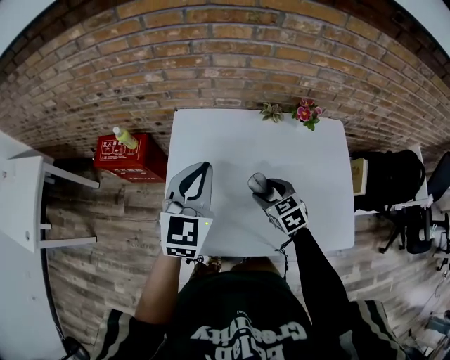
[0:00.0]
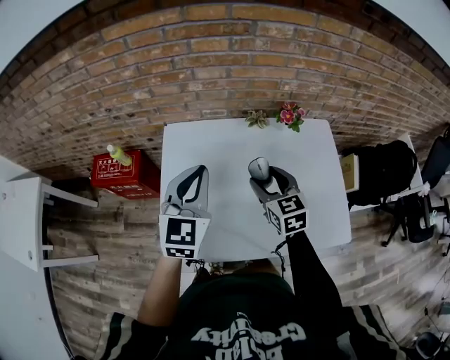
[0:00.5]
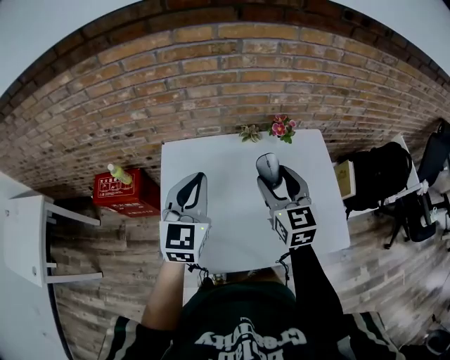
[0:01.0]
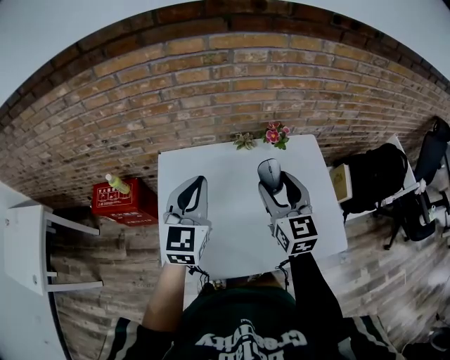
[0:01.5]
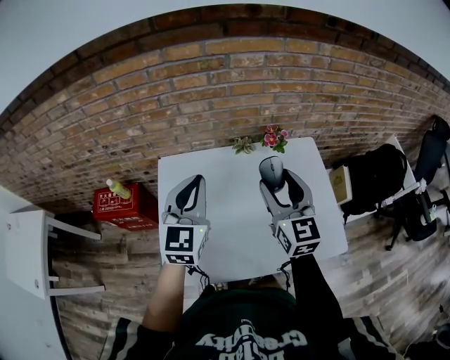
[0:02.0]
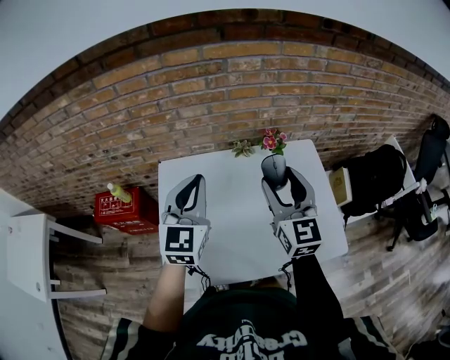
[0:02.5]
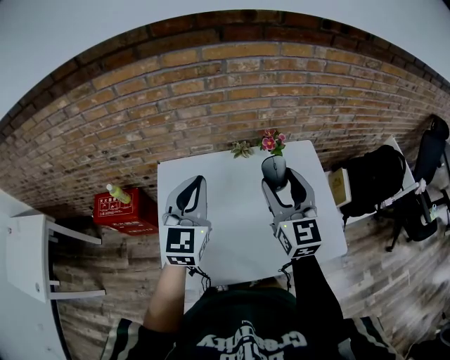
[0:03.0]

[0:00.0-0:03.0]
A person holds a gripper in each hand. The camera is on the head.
0:00.0 to 0:01.5: The right gripper moves upward, roughly 20 cm, and tips its fingers upward by about 40 degrees; the left gripper heads to the right, covering about 5 cm.
0:01.5 to 0:03.0: The right gripper ends up some 5 cm from where it was.

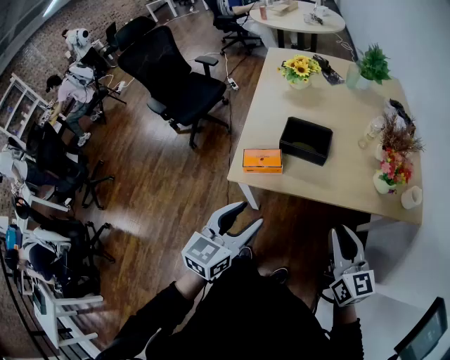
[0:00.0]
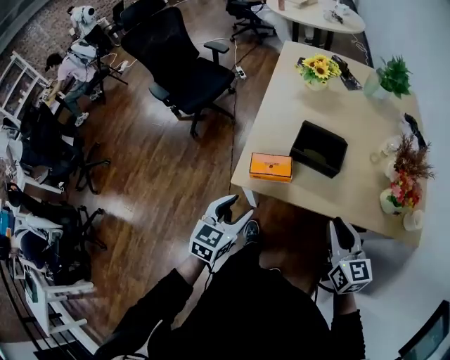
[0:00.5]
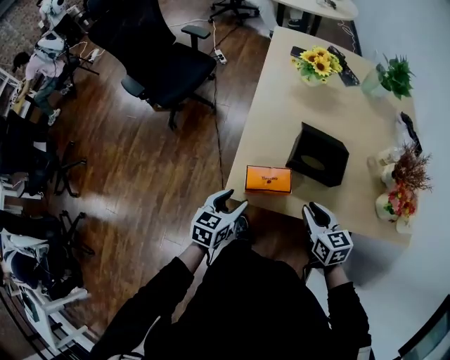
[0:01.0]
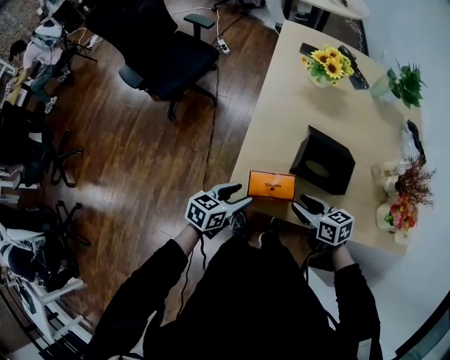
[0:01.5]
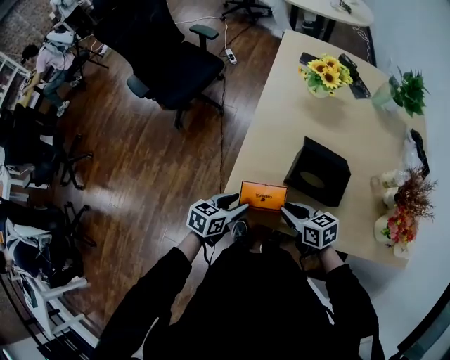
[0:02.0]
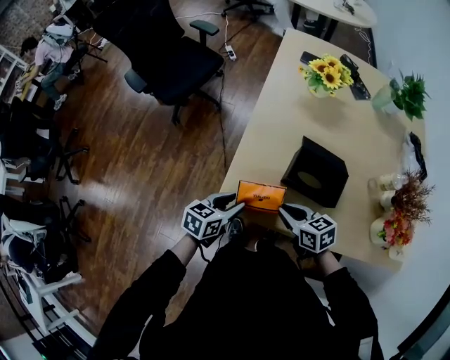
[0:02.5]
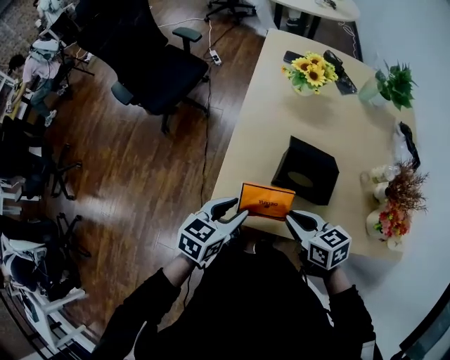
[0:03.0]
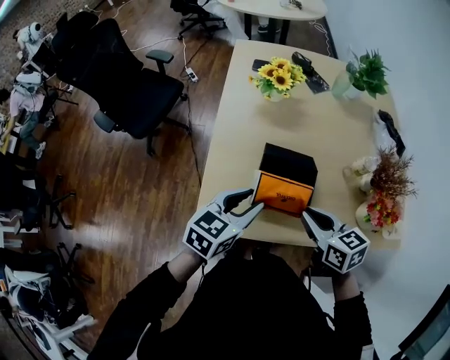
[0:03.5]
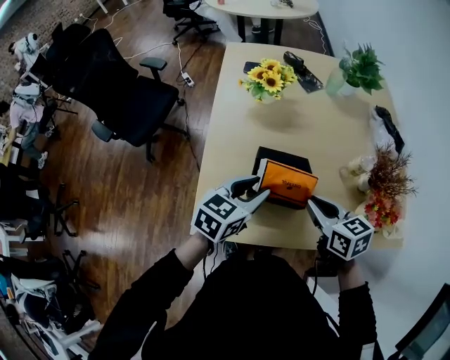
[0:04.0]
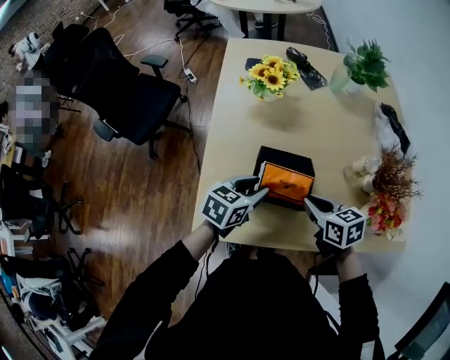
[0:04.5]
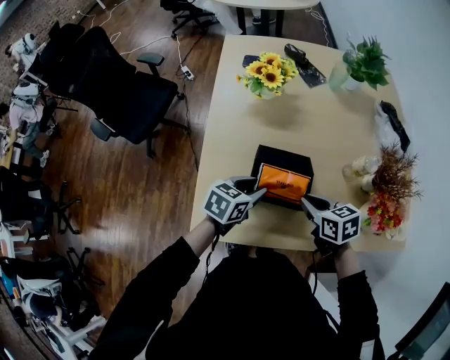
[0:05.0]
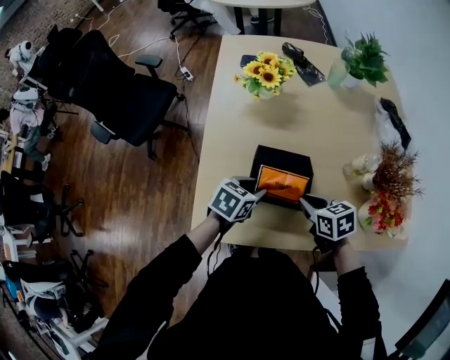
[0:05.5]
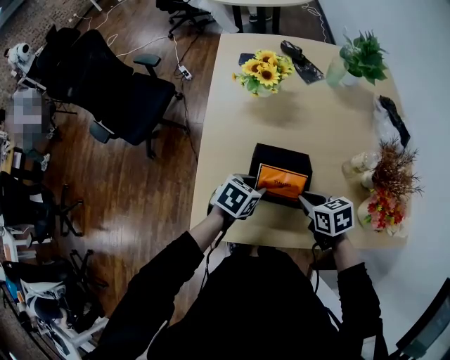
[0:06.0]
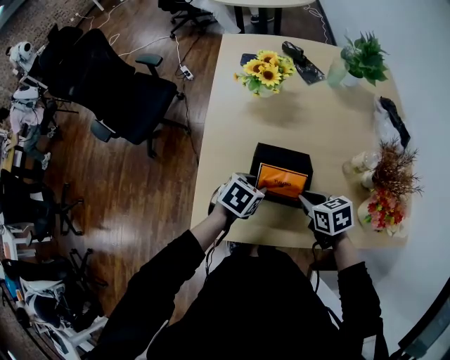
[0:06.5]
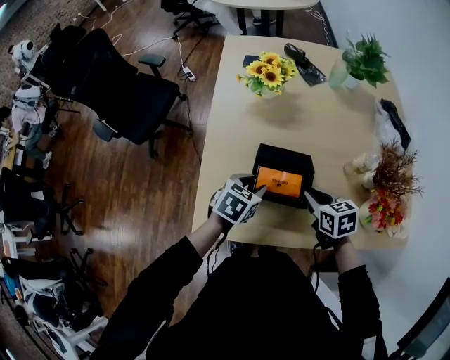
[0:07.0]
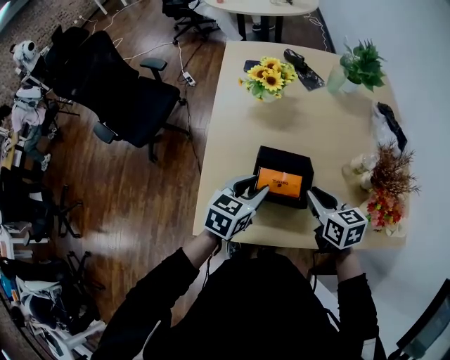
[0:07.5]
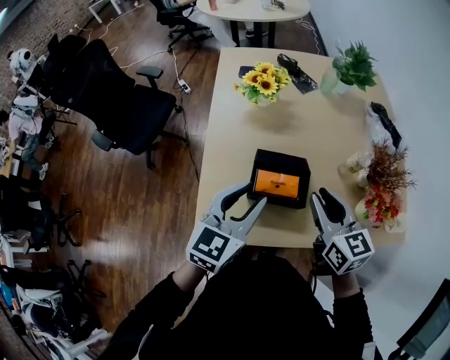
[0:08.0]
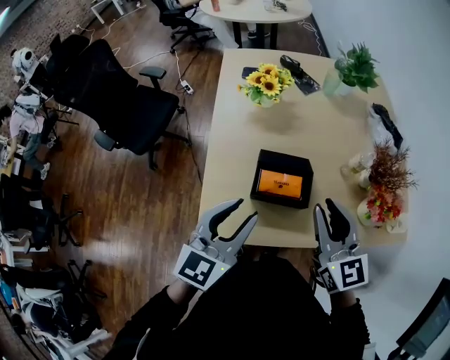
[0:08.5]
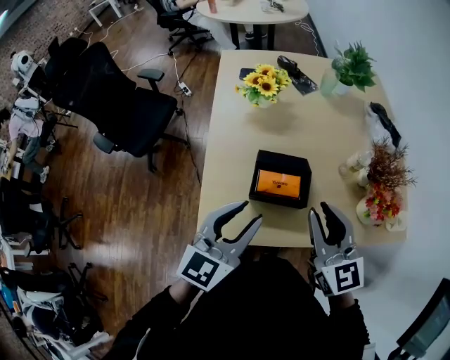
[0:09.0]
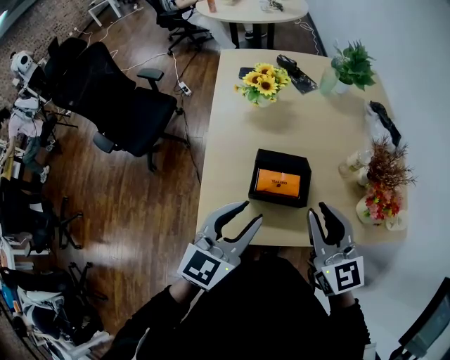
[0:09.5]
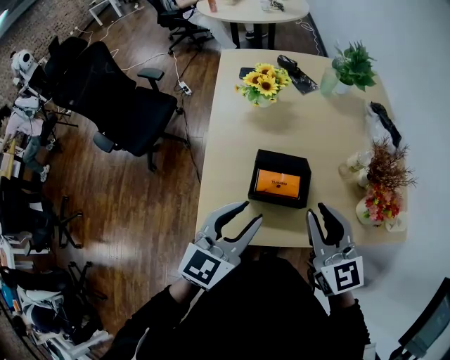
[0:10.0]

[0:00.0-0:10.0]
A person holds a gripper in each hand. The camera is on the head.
0:00.0 to 0:02.0: The right gripper goes roughly 35 cm forward, downward and to the left, changes its angle by some 50 degrees, and opens, then closes once more. Meanwhile the left gripper moves downward and forward, about 30 cm, and swivels some 30 degrees.
0:02.0 to 0:04.0: The left gripper goes about 25 cm to the right, upward and forward, and rotates some 20 degrees; the right gripper is displaced to the right and upward by some 20 cm, and turns by some 20 degrees.
0:04.0 to 0:06.0: Both grippers move downward, about 10 cm. The left gripper turns by roughly 30 degrees.
0:06.0 to 0:08.0: Both grippers travel together upward, some 20 cm. The left gripper tips its fingers upward by about 40 degrees. Meanwhile the right gripper tips its fingers upward by about 30 degrees.
0:08.0 to 0:10.0: The right gripper travels backward by approximately 5 cm.

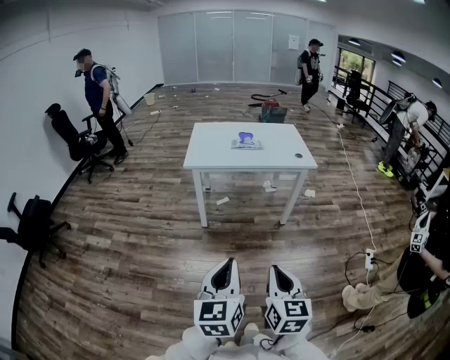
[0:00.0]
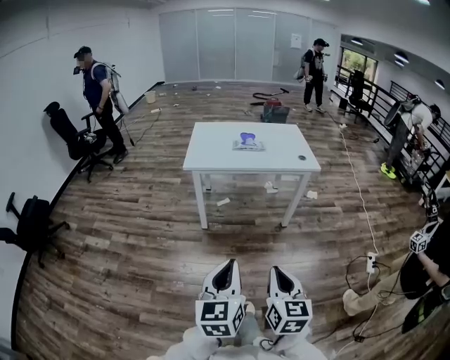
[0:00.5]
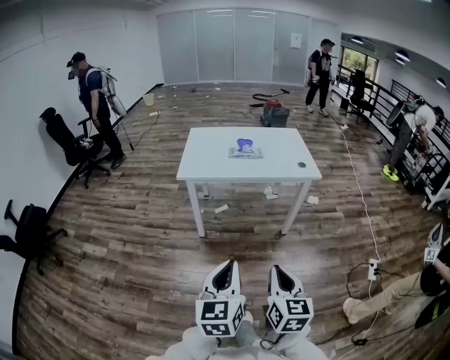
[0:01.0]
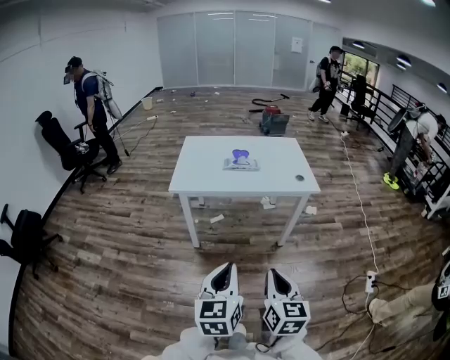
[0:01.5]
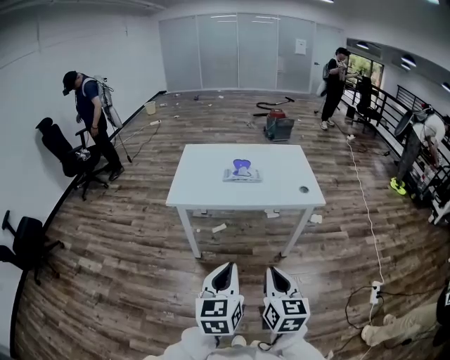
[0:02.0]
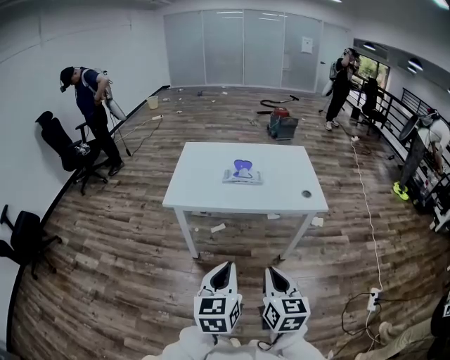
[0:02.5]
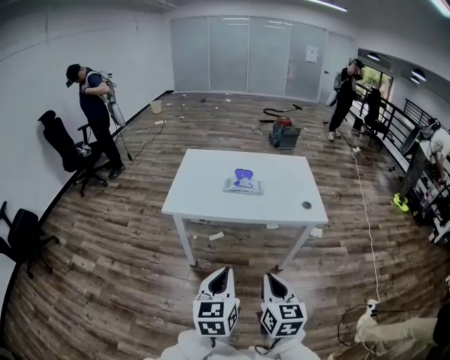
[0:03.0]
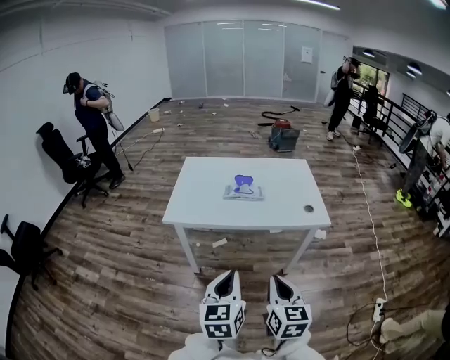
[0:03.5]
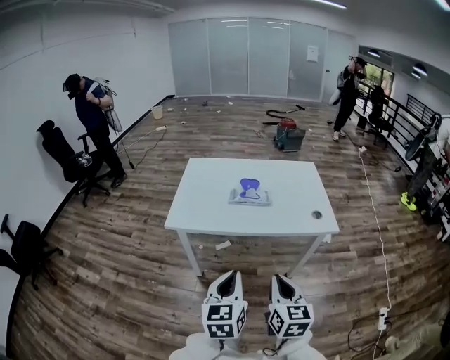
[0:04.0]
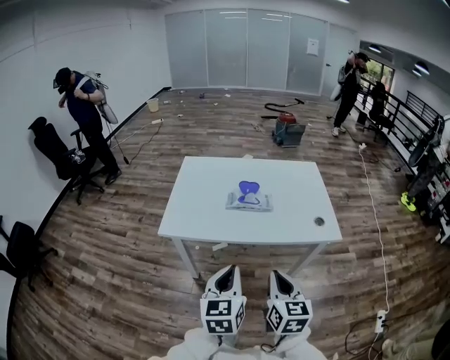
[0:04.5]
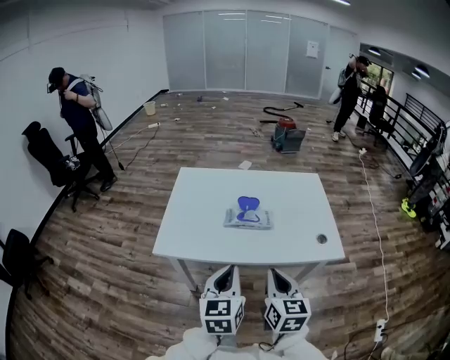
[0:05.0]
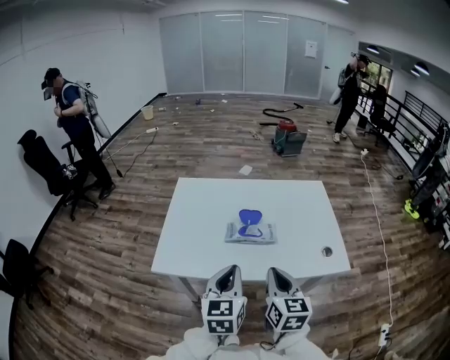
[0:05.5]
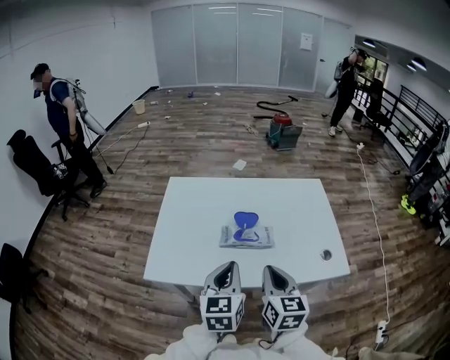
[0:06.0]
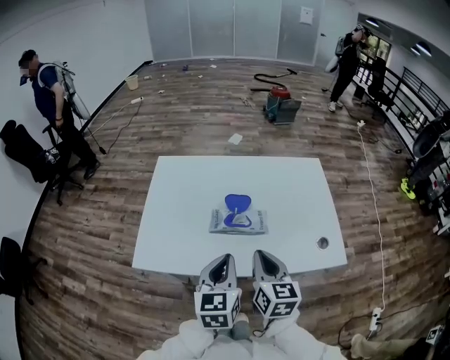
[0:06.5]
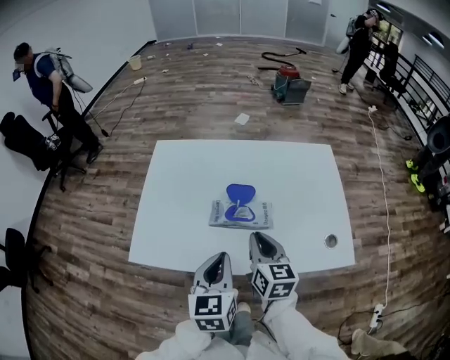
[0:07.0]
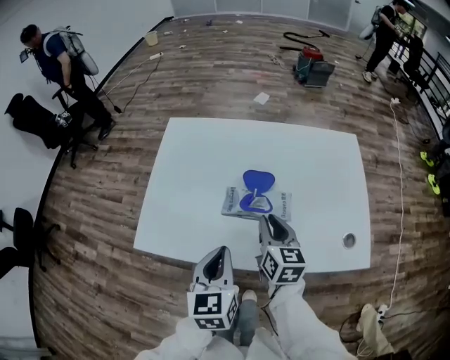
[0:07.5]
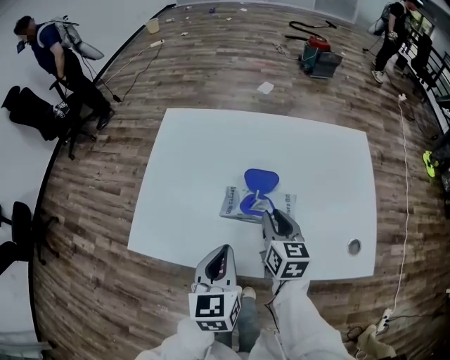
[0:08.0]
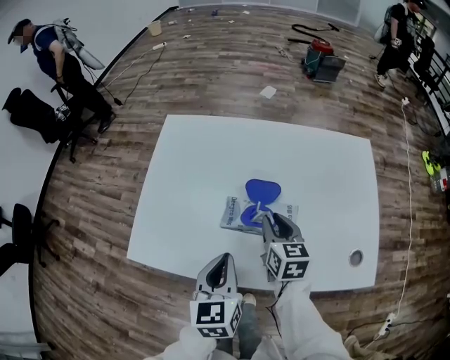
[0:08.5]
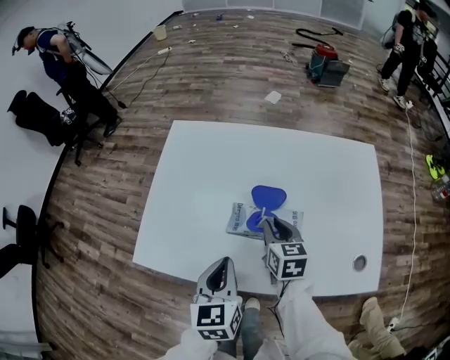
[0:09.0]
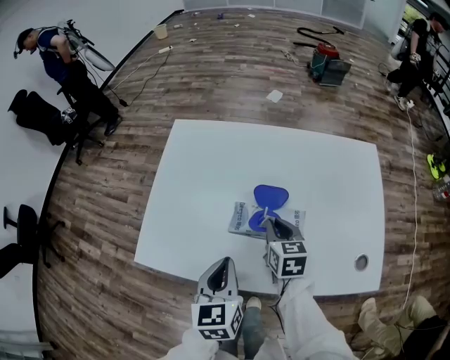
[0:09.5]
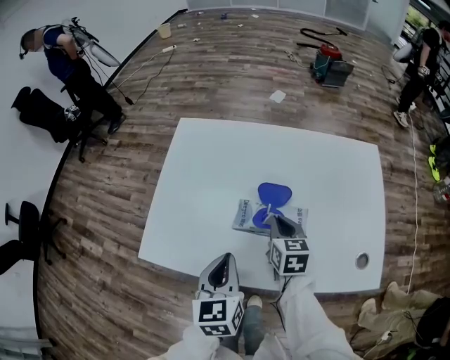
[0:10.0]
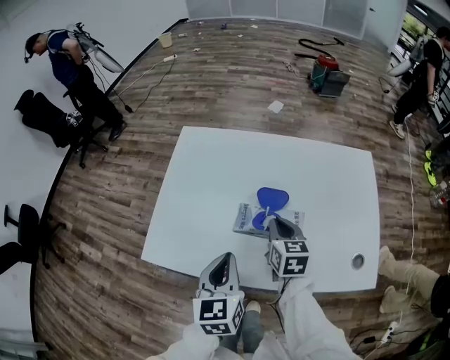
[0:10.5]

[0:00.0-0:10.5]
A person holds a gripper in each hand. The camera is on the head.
0:00.0 to 0:02.0: The two grippers go roughly 30 cm forward.
0:02.0 to 0:04.0: Both grippers travel together forward, about 15 cm.
0:04.0 to 0:06.5: Both grippers move forward, approximately 30 cm.
0:06.5 to 0:08.5: The right gripper shifts approximately 20 cm forward and downward, while the left gripper is displaced downward and forward by approximately 10 cm.
0:08.5 to 0:10.5: The grippers stay close to where they were, moving slightly.

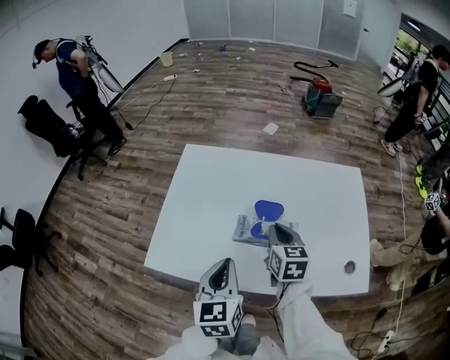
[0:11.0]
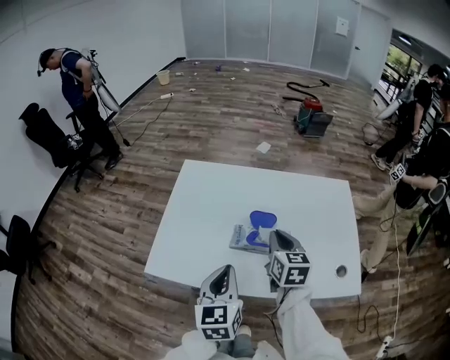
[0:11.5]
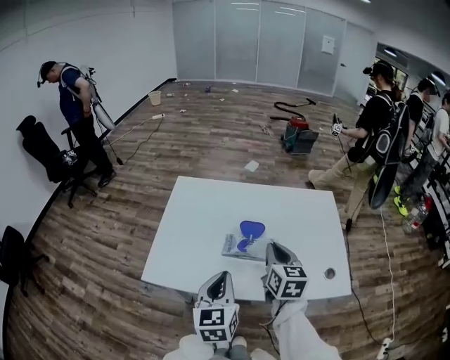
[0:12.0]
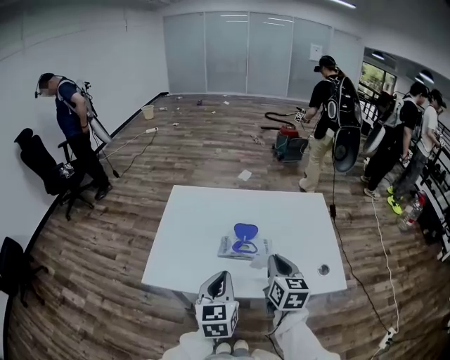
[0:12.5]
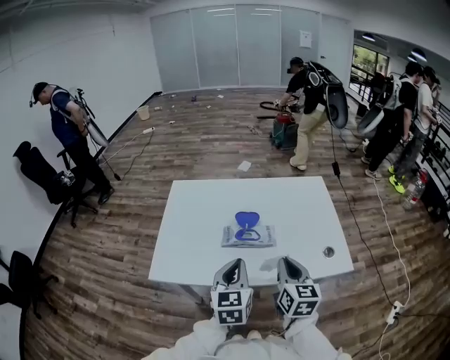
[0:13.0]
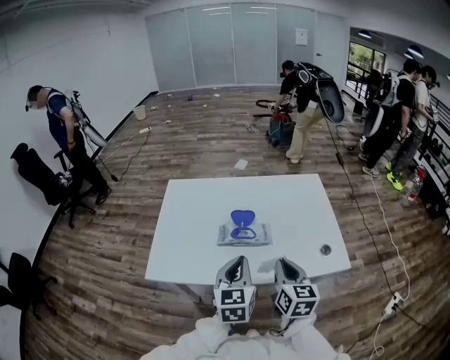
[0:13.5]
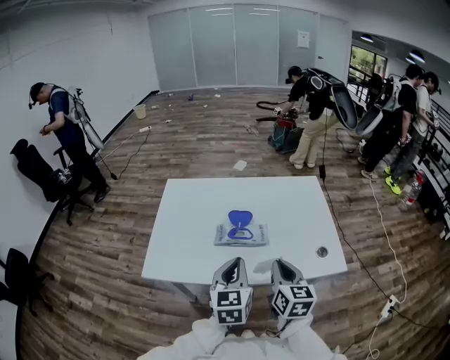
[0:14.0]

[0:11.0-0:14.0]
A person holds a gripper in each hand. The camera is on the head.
0:11.0 to 0:12.5: The left gripper shifts about 5 cm backward. Meanwhile the right gripper heads backward and upward, covering roughly 15 cm.
0:12.5 to 0:14.0: The right gripper is displaced backward by approximately 5 cm. Meanwhile the left gripper shifts approximately 5 cm to the right.
